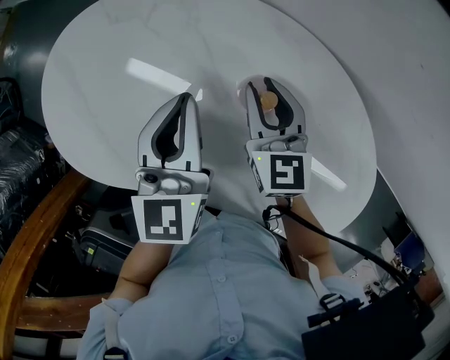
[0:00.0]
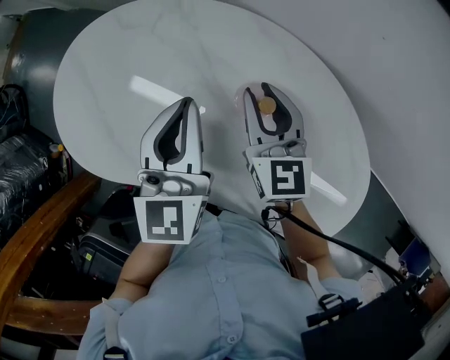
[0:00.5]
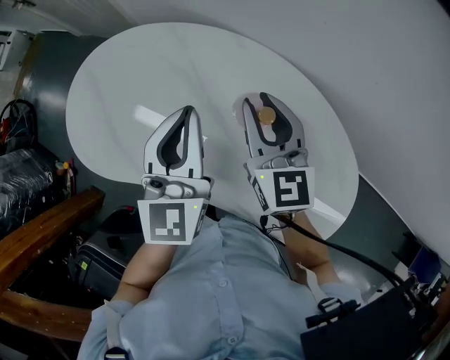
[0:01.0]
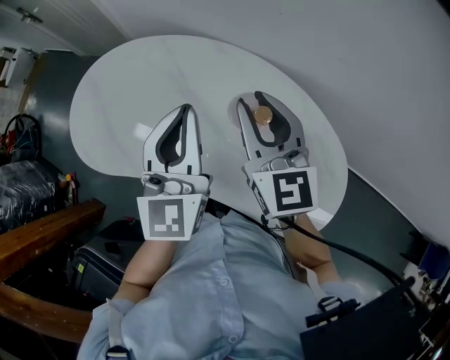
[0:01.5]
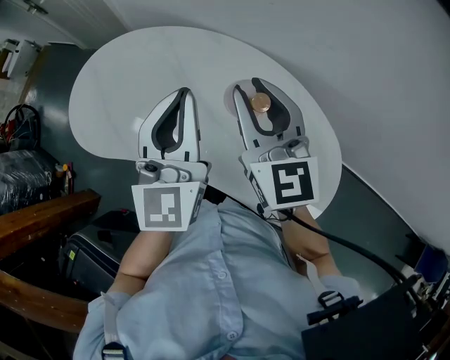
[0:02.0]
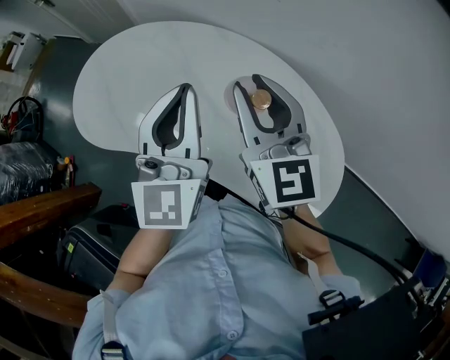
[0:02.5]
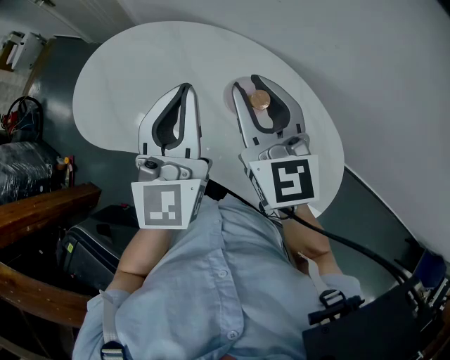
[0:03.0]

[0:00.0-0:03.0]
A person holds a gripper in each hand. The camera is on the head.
0:00.0 to 0:01.5: The grippers both shift upward and backward by about 15 cm. The right gripper turns by about 20 degrees.
0:01.5 to 0:03.0: The grippers stay close to where they were, moving slightly.

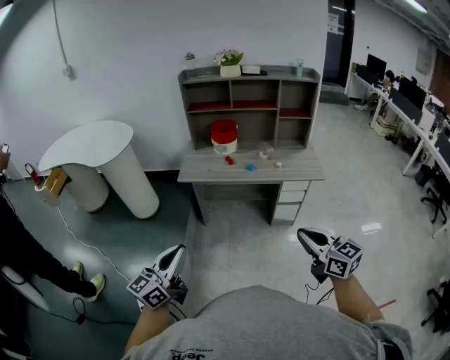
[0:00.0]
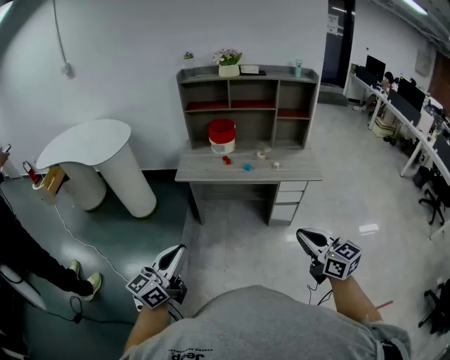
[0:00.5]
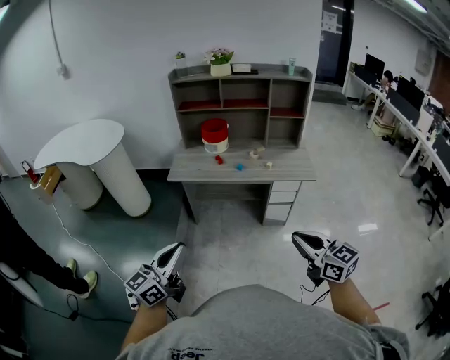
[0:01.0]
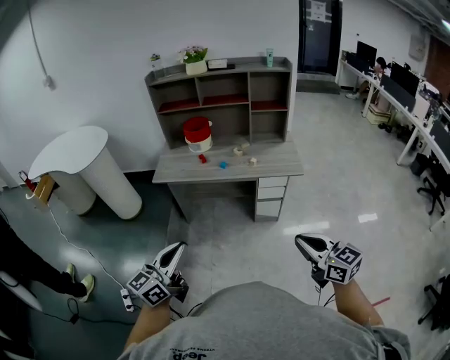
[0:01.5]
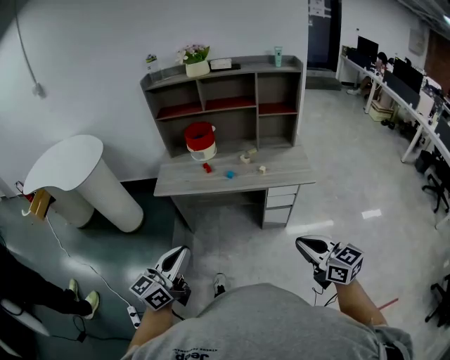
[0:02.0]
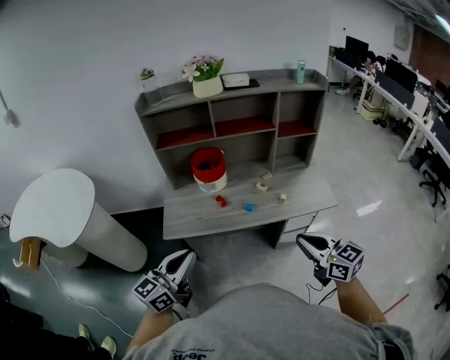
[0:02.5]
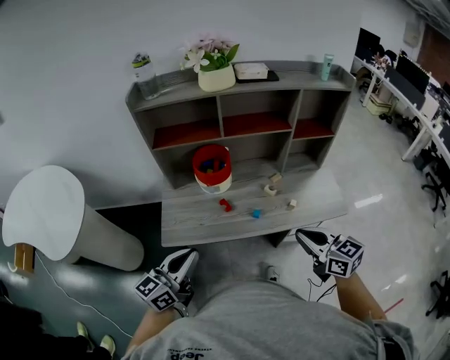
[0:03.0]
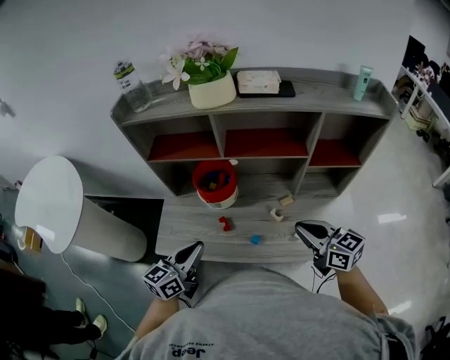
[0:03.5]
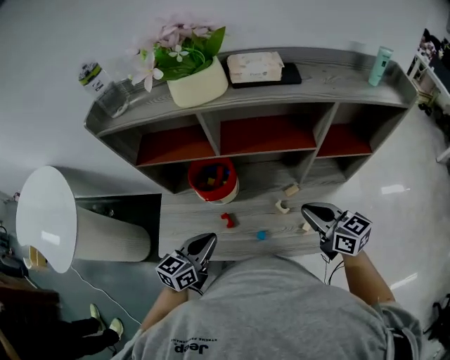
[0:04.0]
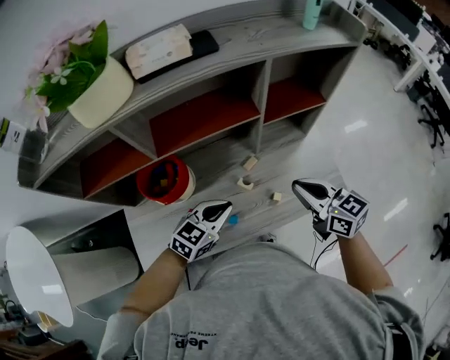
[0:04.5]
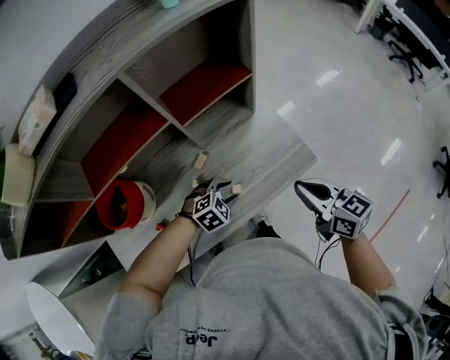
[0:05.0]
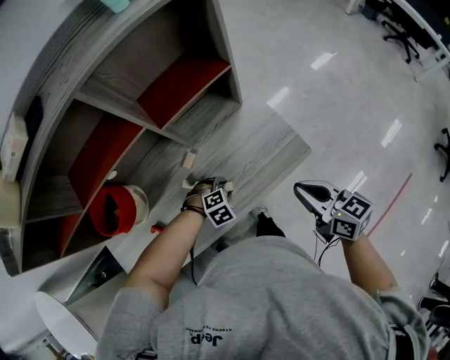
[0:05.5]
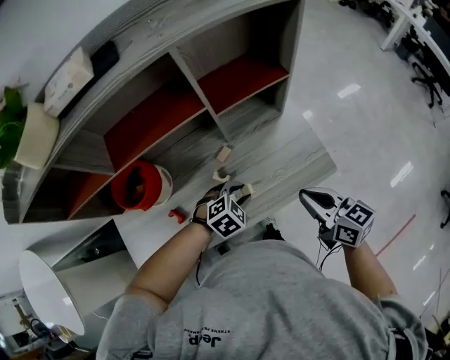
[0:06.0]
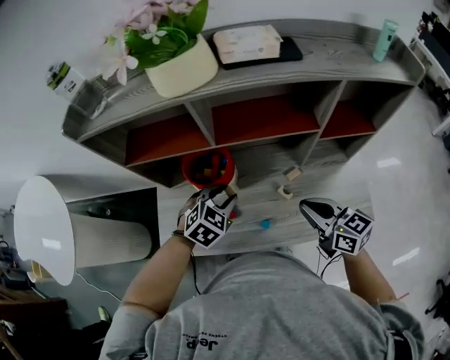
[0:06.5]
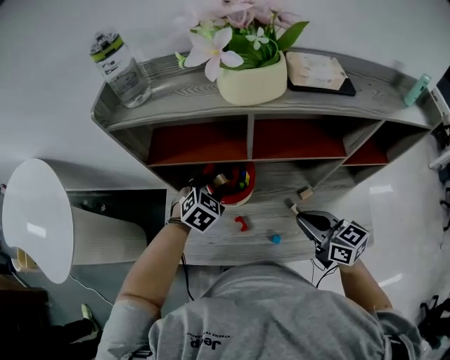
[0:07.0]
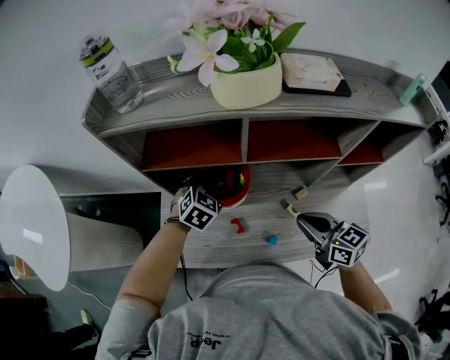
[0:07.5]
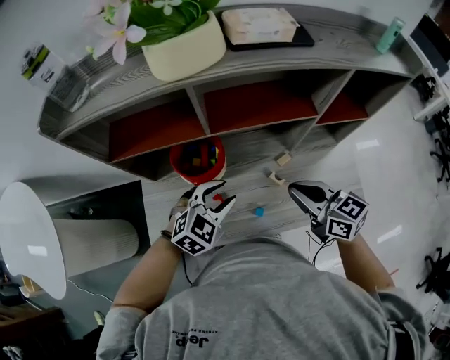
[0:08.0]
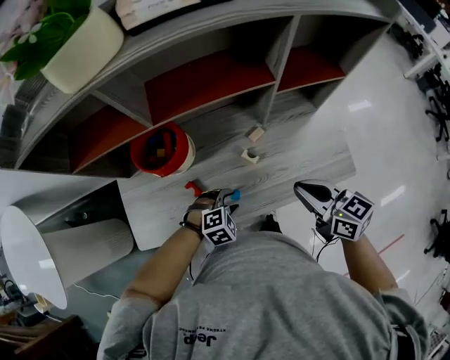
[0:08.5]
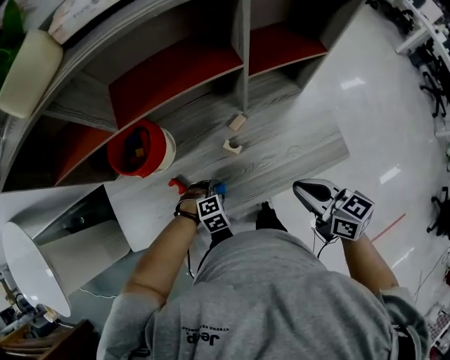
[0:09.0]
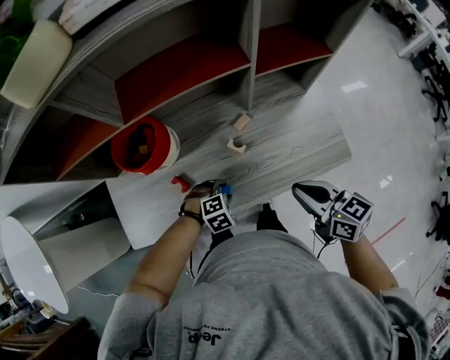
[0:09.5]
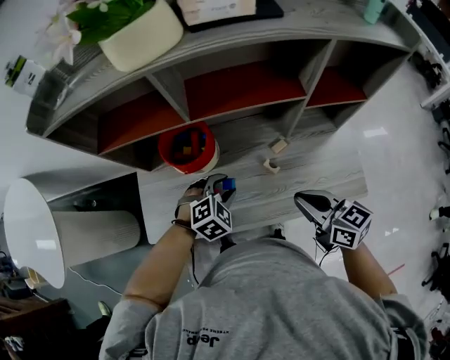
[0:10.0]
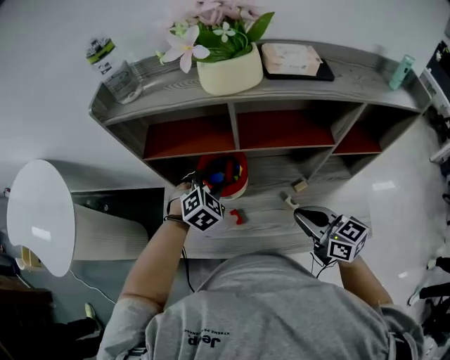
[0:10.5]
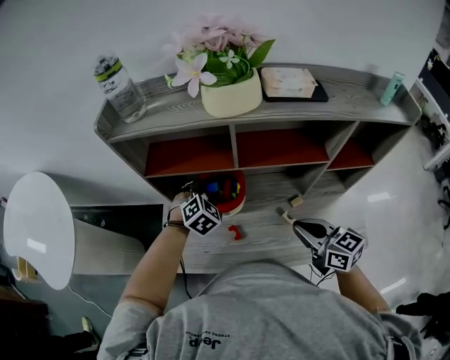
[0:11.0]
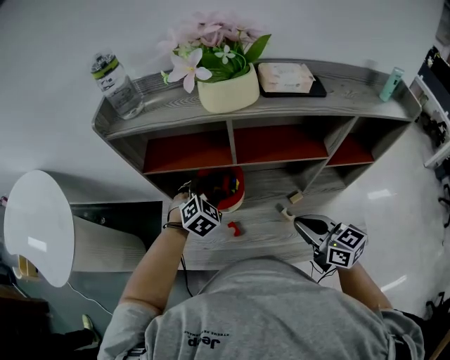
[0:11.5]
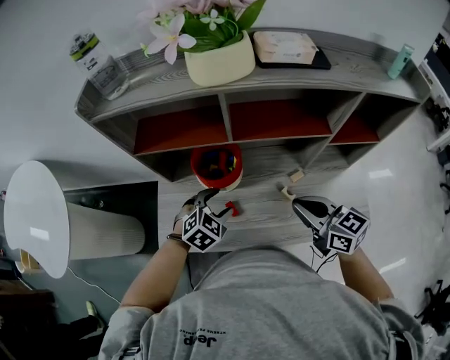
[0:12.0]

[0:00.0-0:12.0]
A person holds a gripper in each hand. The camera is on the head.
0:00.0 to 0:02.0: The right gripper heads to the right, forward and downward, covering some 15 cm. Meanwhile the left gripper shifts roughly 20 cm forward and to the right.
0:02.0 to 0:04.0: The pair of grippers is taken forward, some 60 cm. The left gripper rotates roughly 20 degrees.
0:04.0 to 0:06.0: The left gripper moves some 35 cm, and angles its fingers downward, by roughly 40 degrees; the right gripper ends up some 20 cm from where it was, and swivels about 30 degrees.
0:06.0 to 0:08.0: The left gripper moves approximately 30 cm, and changes its angle by some 30 degrees. The right gripper moves about 25 cm, and rotates some 20 degrees.
0:08.0 to 0:10.0: The left gripper moves roughly 25 cm downward and comes back, and changes its angle by some 20 degrees.
0:10.0 to 0:12.0: The left gripper heads to the left and upward, covering roughly 10 cm, and moves roughly 15 cm forward and comes back, while the right gripper shifts roughly 10 cm to the left, upward and forward.

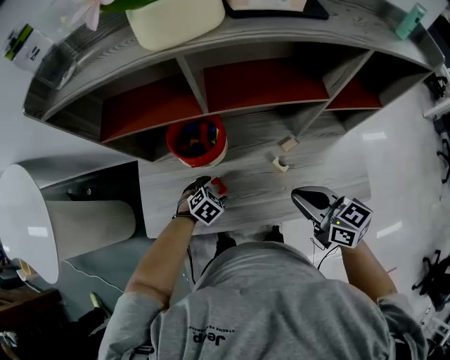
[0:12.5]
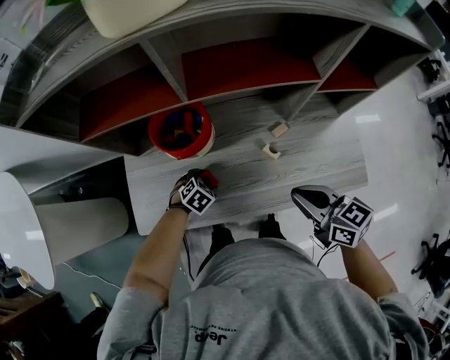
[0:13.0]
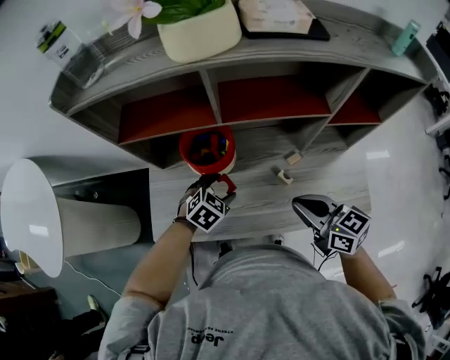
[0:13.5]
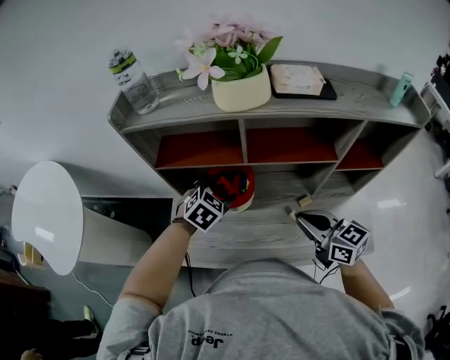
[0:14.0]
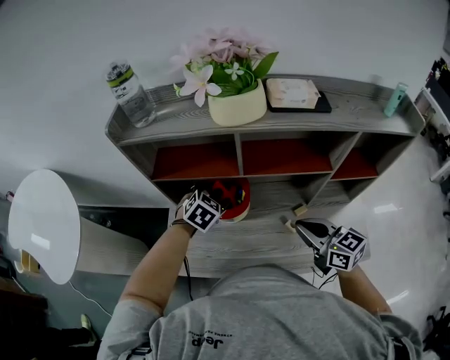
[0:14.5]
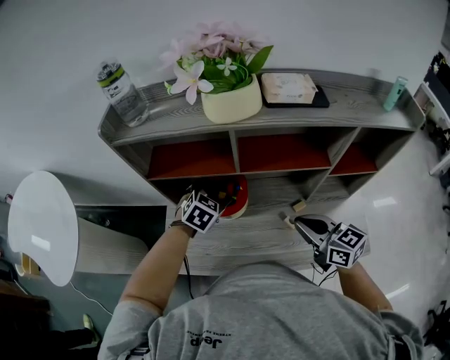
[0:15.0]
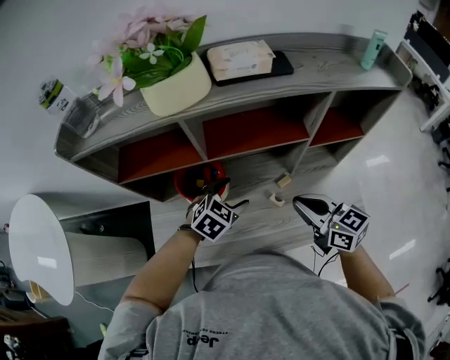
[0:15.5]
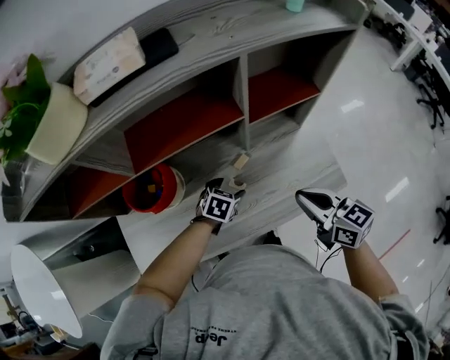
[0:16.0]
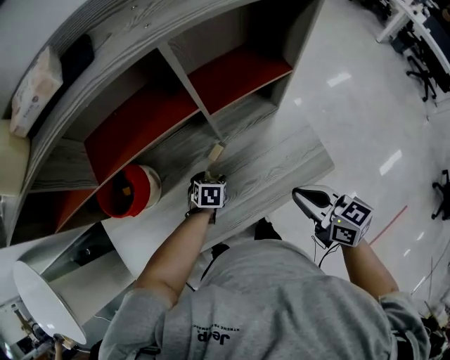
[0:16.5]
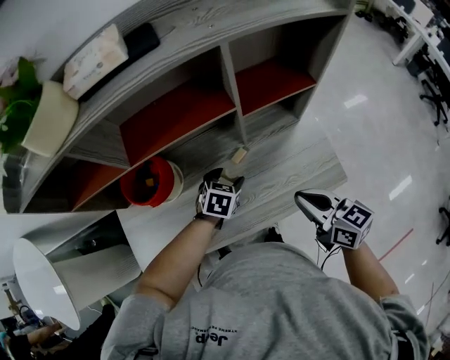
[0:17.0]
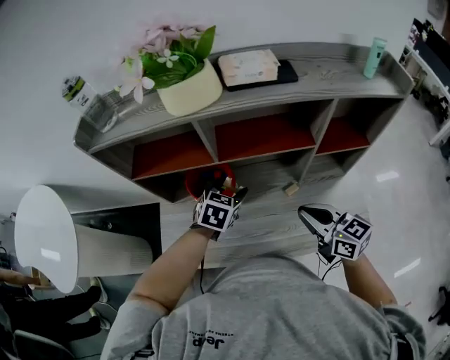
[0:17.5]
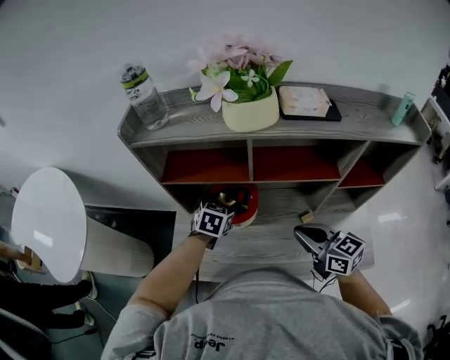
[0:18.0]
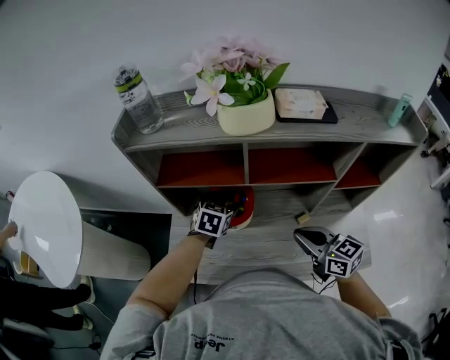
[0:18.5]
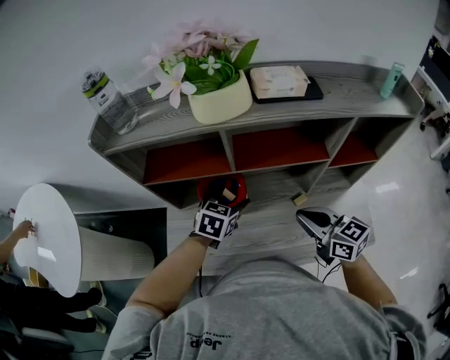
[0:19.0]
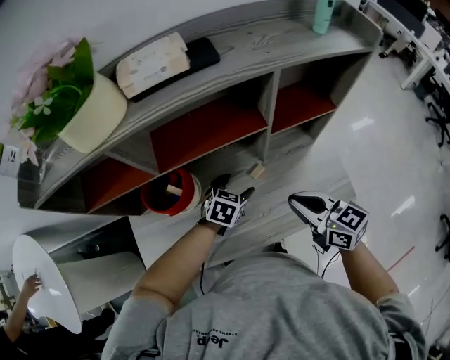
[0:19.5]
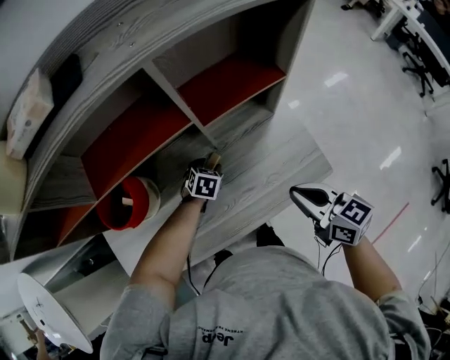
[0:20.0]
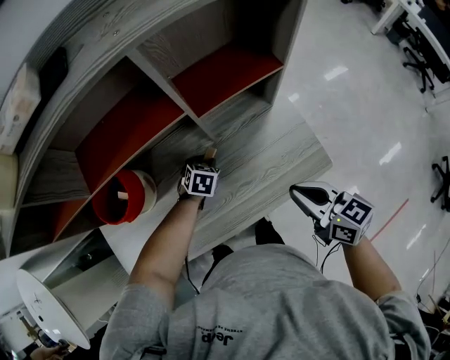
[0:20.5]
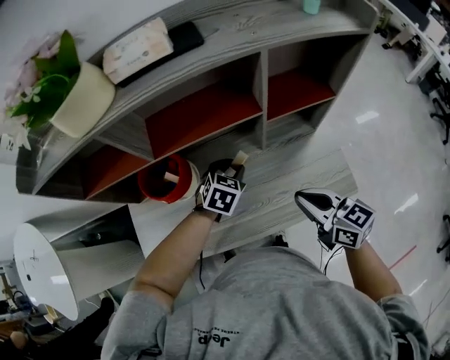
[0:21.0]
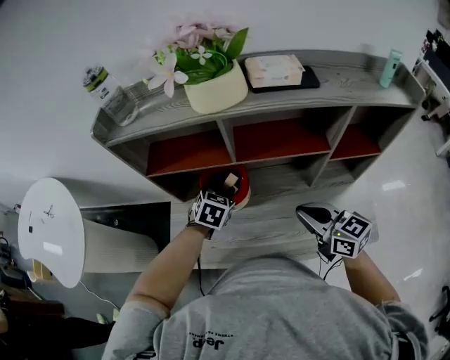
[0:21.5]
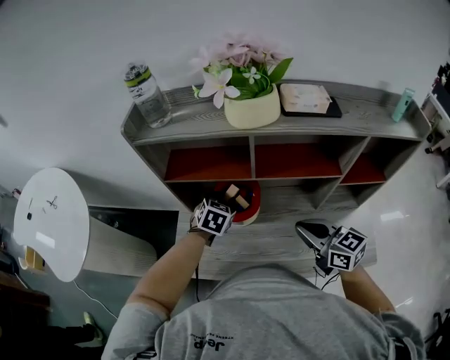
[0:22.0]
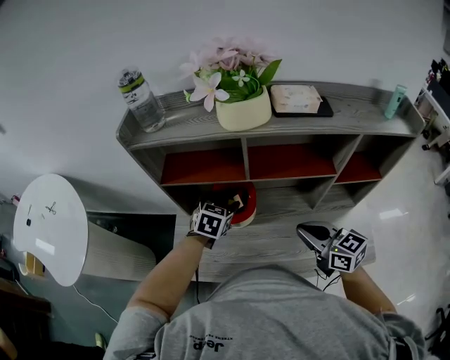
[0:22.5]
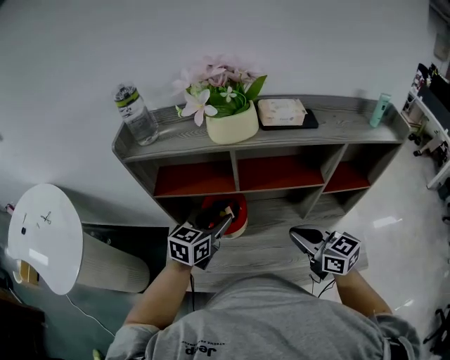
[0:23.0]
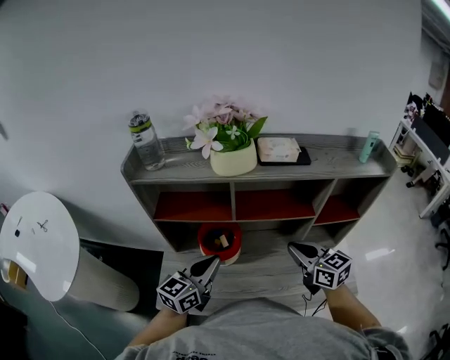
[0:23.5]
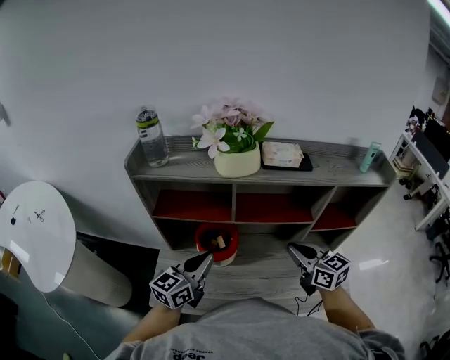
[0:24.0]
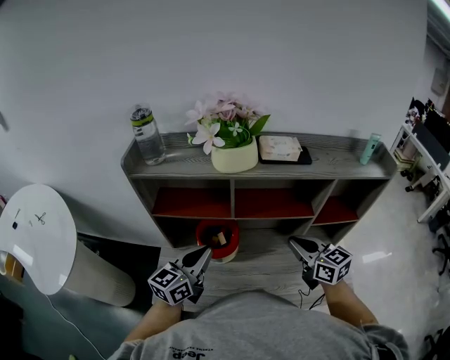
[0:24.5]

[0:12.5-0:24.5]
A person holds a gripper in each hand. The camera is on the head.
0:12.5 to 0:14.5: The left gripper shifts roughly 30 cm upward and forward, and swivels some 20 degrees. The right gripper travels upward by some 5 cm.
0:14.5 to 0:16.5: The left gripper changes place by approximately 40 cm, and changes its angle by about 20 degrees, while the right gripper ends up approximately 30 cm from where it was, and turns by roughly 30 degrees.
0:16.5 to 0:18.5: The left gripper goes approximately 40 cm to the left and upward, and rotates roughly 30 degrees, while the right gripper shifts roughly 30 cm to the left, forward and upward, and rotates approximately 30 degrees.
0:18.5 to 0:20.5: The right gripper travels to the right by some 30 cm, and changes its angle by approximately 30 degrees. The left gripper shifts roughly 40 cm to the right and downward, changes its angle by about 30 degrees, and closes.
0:20.5 to 0:22.5: The right gripper goes about 30 cm to the left, upward and forward, and rotates roughly 30 degrees. The left gripper is displaced to the left and upward by roughly 40 cm, rotates roughly 30 degrees, and opens up.
0:22.5 to 0:24.5: The left gripper travels upward and backward by about 15 cm, angles its fingers upward, by roughly 40 degrees, and closes. Meanwhile the right gripper is displaced forward by approximately 5 cm.
